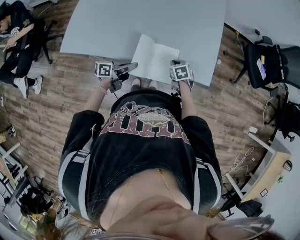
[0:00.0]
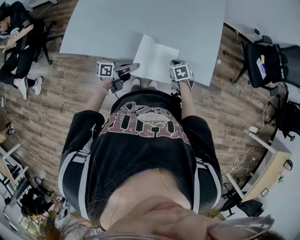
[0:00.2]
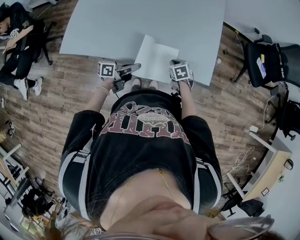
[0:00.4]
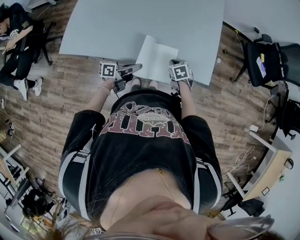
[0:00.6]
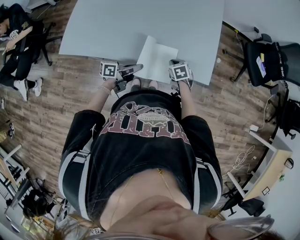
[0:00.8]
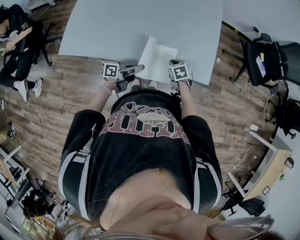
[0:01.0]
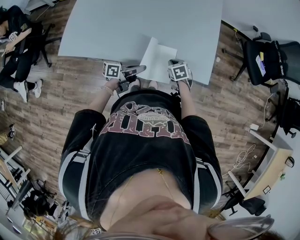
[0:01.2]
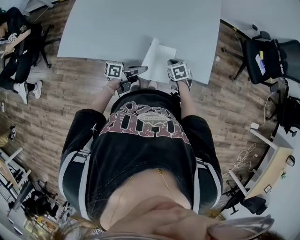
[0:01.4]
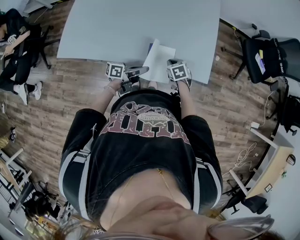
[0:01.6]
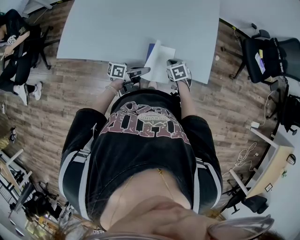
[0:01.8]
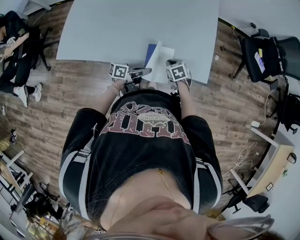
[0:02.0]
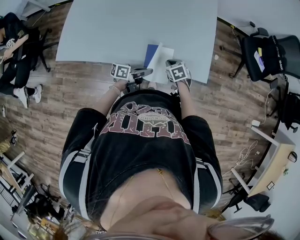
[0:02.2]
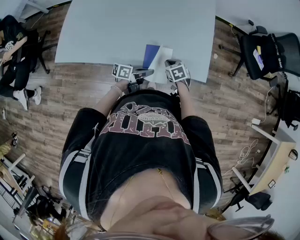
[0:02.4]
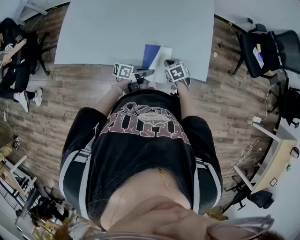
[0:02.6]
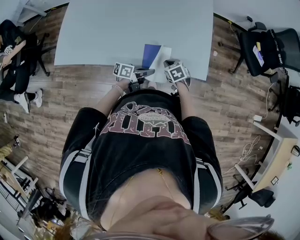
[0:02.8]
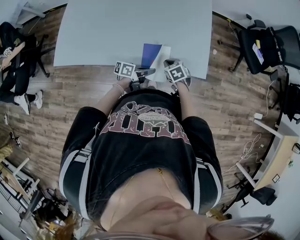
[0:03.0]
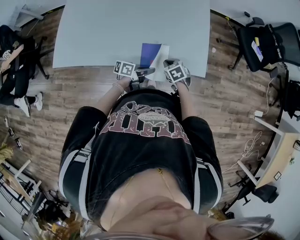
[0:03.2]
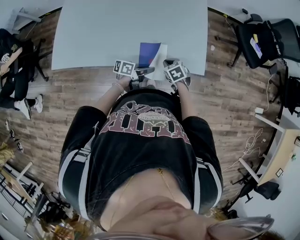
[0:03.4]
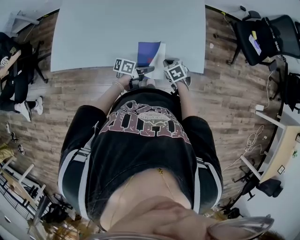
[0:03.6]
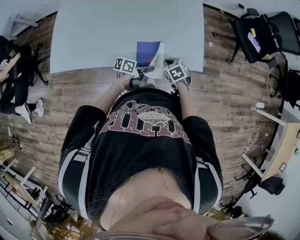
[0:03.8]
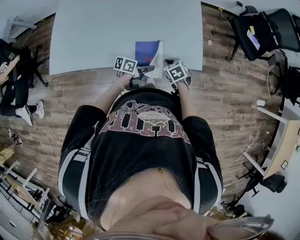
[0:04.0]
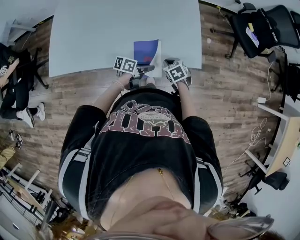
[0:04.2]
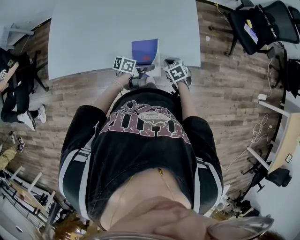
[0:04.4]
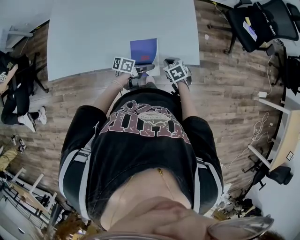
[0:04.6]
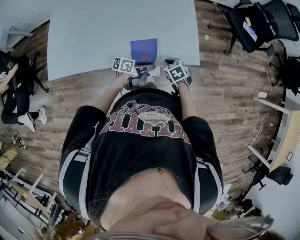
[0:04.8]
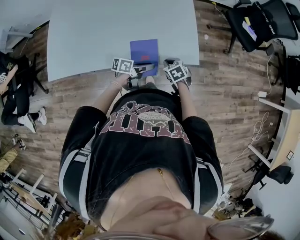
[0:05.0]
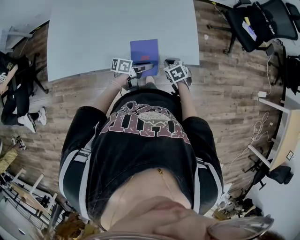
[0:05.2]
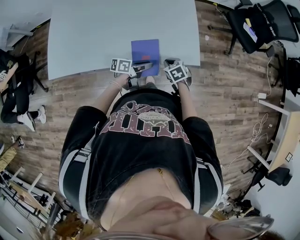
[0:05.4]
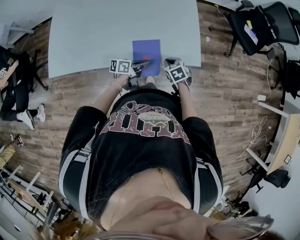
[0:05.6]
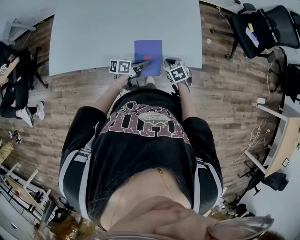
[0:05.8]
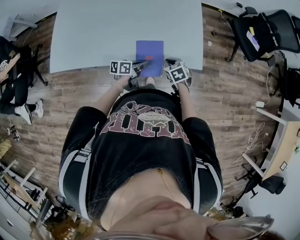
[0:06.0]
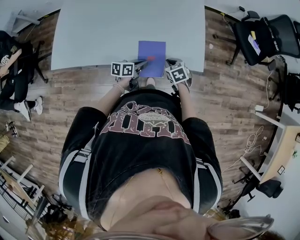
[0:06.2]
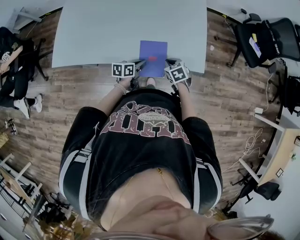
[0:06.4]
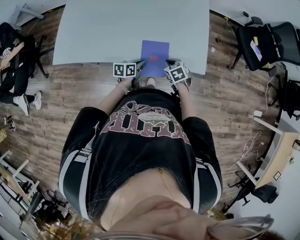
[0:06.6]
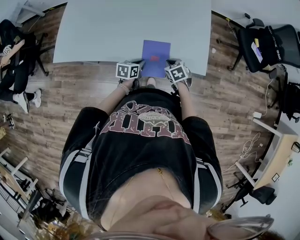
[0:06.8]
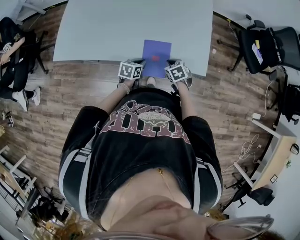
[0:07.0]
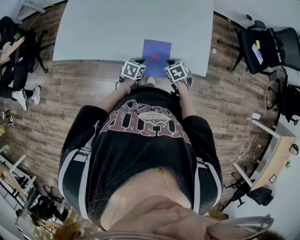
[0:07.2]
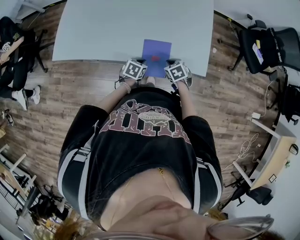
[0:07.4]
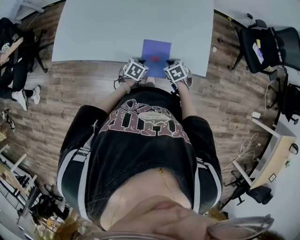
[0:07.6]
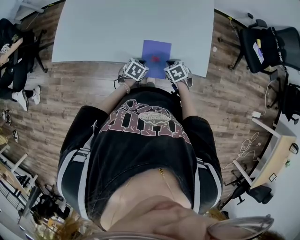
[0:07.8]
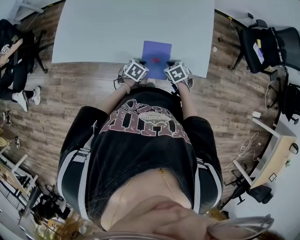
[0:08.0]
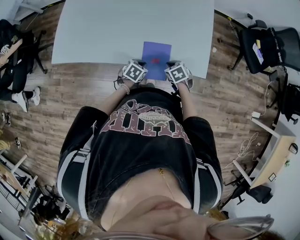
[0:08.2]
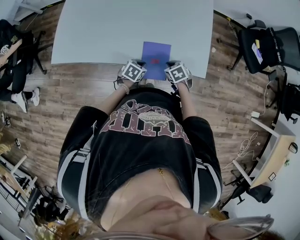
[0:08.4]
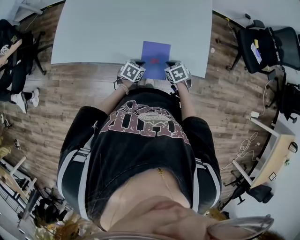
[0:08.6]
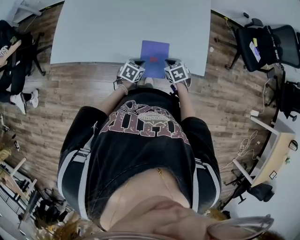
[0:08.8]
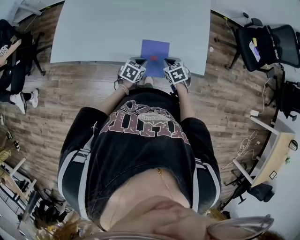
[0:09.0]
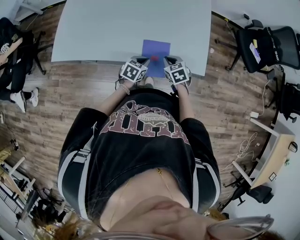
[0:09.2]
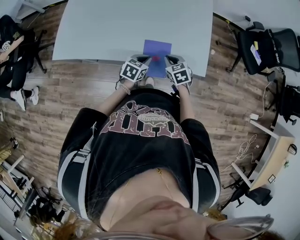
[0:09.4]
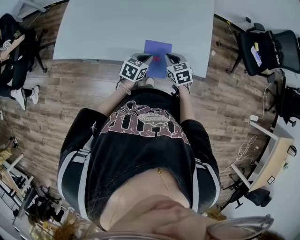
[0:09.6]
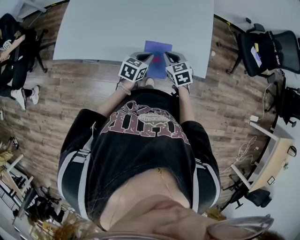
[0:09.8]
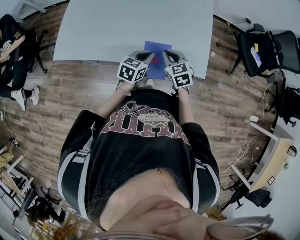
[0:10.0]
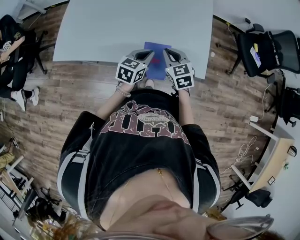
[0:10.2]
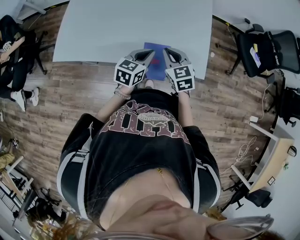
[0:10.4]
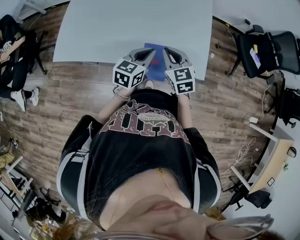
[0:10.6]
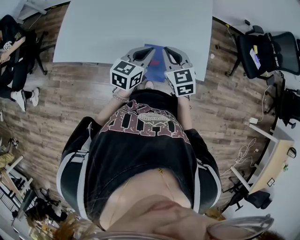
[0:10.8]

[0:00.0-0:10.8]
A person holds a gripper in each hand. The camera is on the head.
0:00.0 to 0:01.6: The left gripper shifts approximately 5 cm to the right.
0:01.6 to 0:03.0: The left gripper shifts about 5 cm to the right.
0:03.0 to 0:04.6: The left gripper opens; the right gripper travels to the right by about 5 cm.
0:04.6 to 0:06.2: The left gripper shifts approximately 5 cm to the left, changes its angle by approximately 20 degrees, and closes its fingers.
0:06.2 to 0:07.8: The left gripper tilts its fingers some 30 degrees downward.
0:07.8 to 0:09.2: The two grippers go roughly 5 cm upward.
0:09.2 to 0:10.8: Both grippers travel together upward, approximately 20 cm. The left gripper swivels some 30 degrees, while the right gripper turns by about 30 degrees.

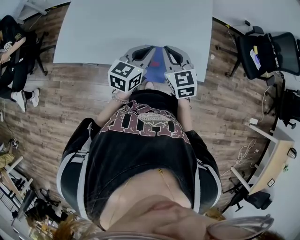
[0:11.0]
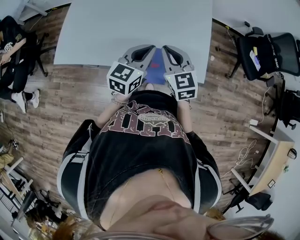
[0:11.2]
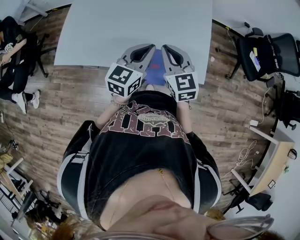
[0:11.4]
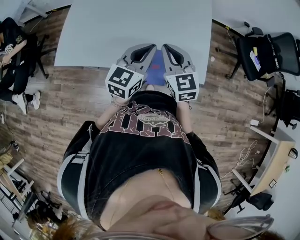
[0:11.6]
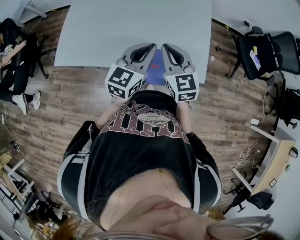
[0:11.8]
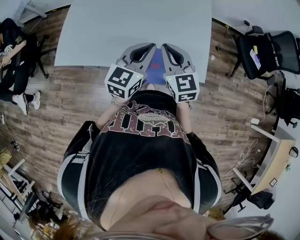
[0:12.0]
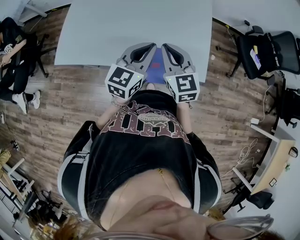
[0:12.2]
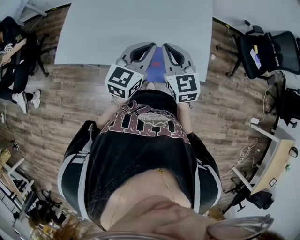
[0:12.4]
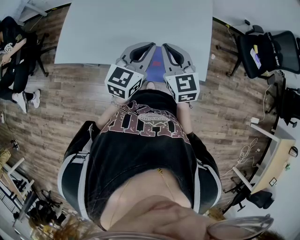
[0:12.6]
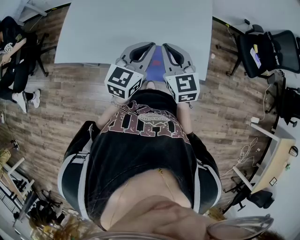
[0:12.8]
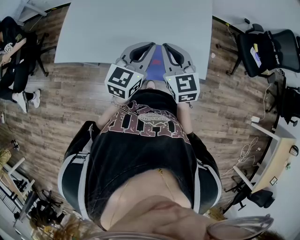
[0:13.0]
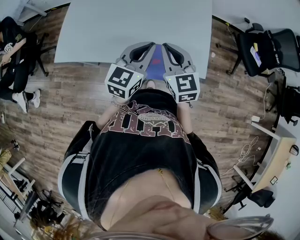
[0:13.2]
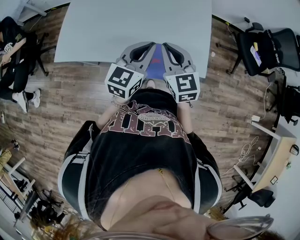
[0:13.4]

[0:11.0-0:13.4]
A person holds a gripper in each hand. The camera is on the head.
0:11.0 to 0:12.2: The left gripper is displaced upward by approximately 5 cm, while the right gripper moves some 5 cm.
0:12.2 to 0:13.4: The grippers move only a little.

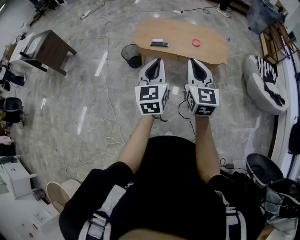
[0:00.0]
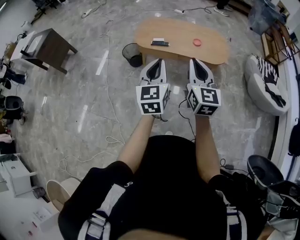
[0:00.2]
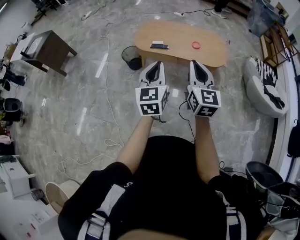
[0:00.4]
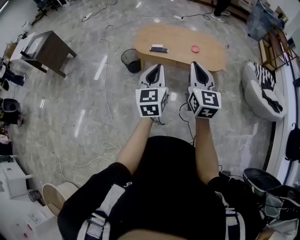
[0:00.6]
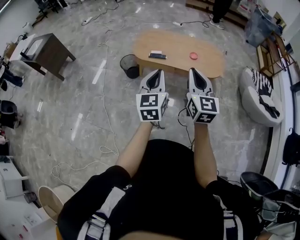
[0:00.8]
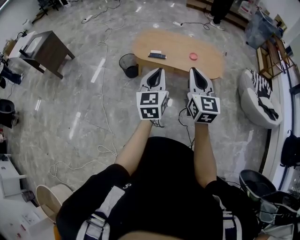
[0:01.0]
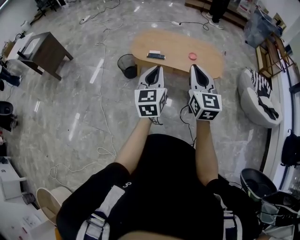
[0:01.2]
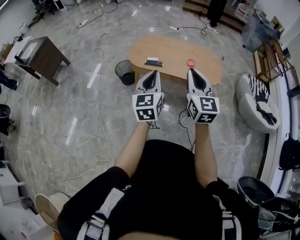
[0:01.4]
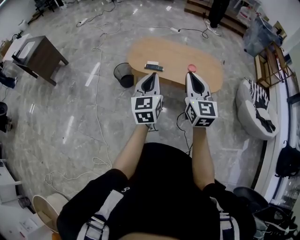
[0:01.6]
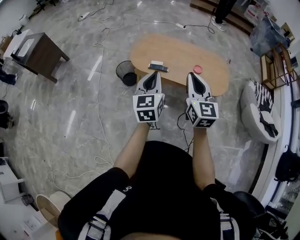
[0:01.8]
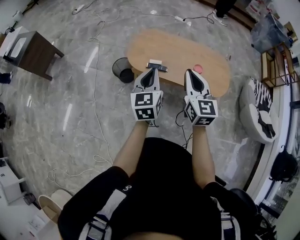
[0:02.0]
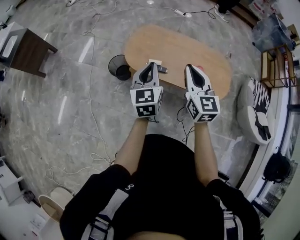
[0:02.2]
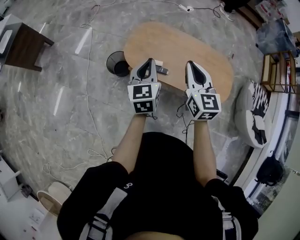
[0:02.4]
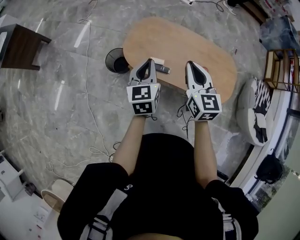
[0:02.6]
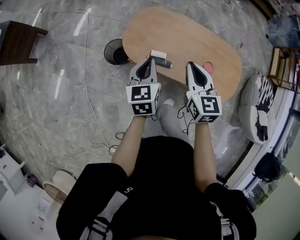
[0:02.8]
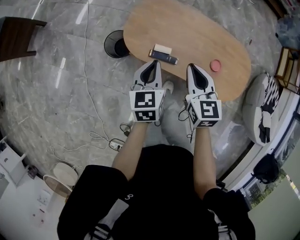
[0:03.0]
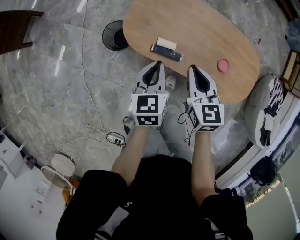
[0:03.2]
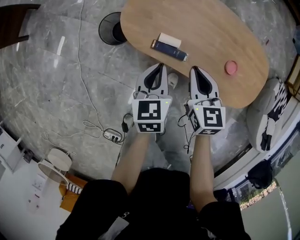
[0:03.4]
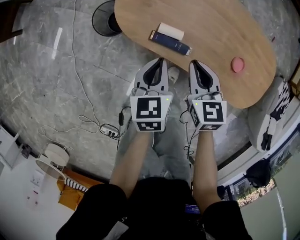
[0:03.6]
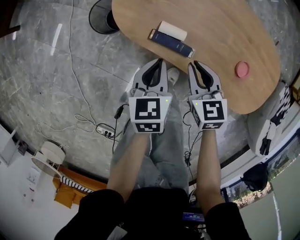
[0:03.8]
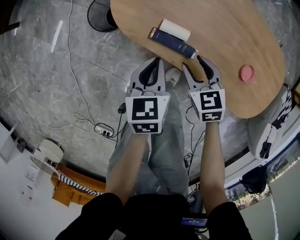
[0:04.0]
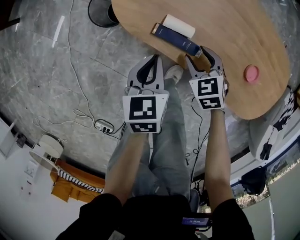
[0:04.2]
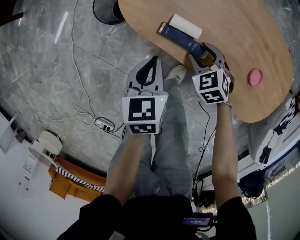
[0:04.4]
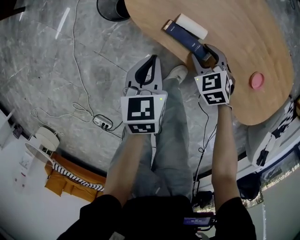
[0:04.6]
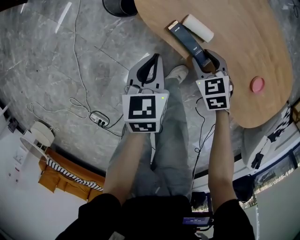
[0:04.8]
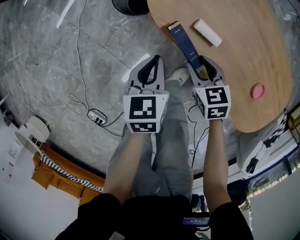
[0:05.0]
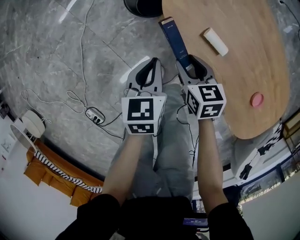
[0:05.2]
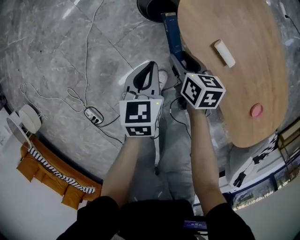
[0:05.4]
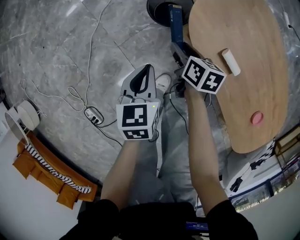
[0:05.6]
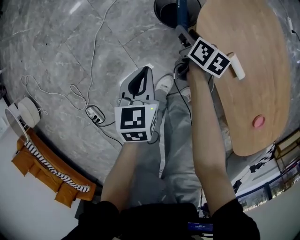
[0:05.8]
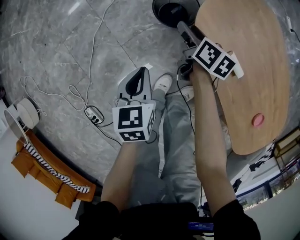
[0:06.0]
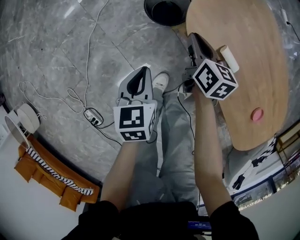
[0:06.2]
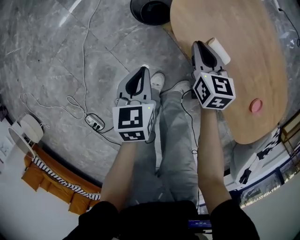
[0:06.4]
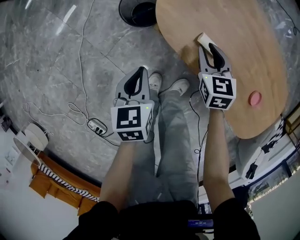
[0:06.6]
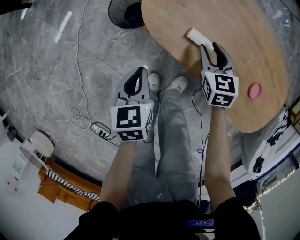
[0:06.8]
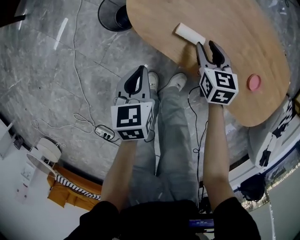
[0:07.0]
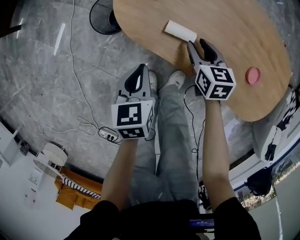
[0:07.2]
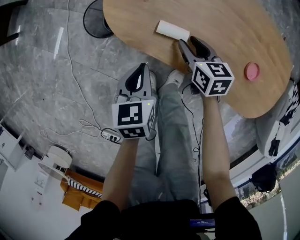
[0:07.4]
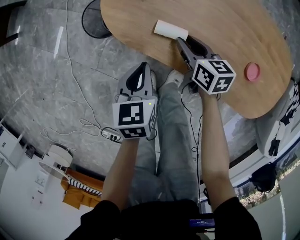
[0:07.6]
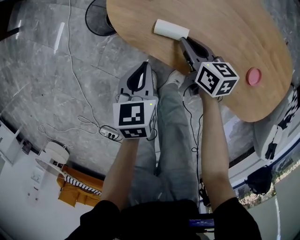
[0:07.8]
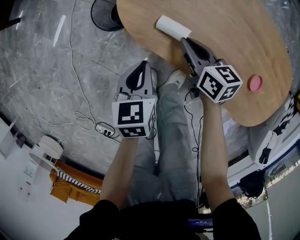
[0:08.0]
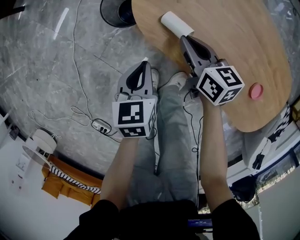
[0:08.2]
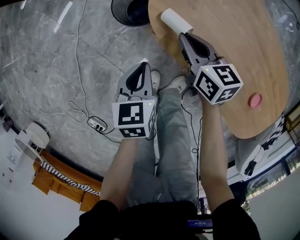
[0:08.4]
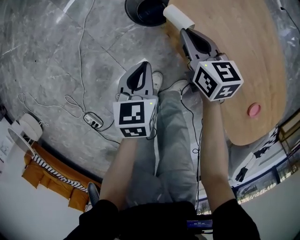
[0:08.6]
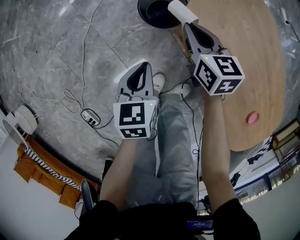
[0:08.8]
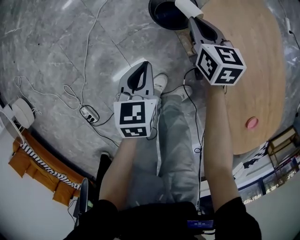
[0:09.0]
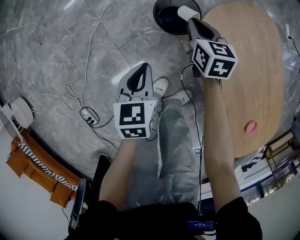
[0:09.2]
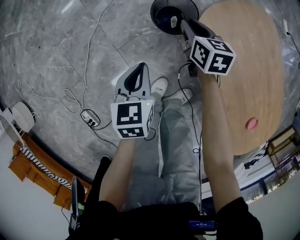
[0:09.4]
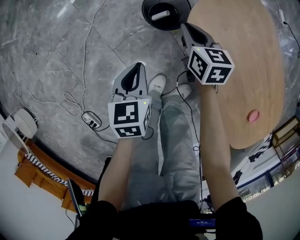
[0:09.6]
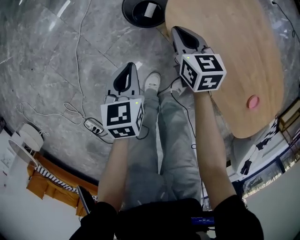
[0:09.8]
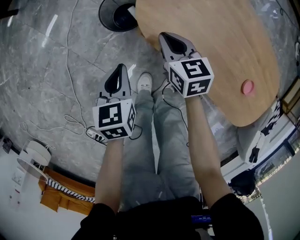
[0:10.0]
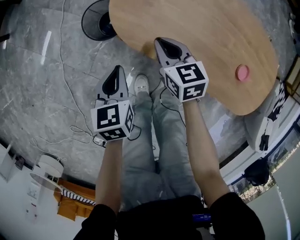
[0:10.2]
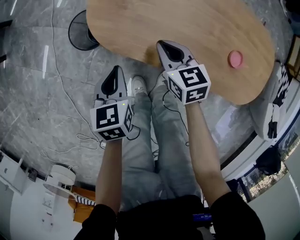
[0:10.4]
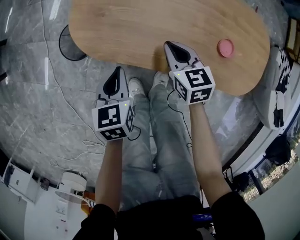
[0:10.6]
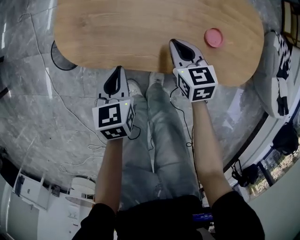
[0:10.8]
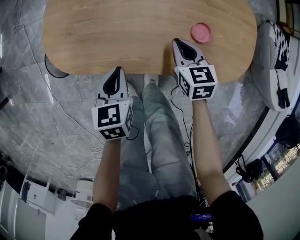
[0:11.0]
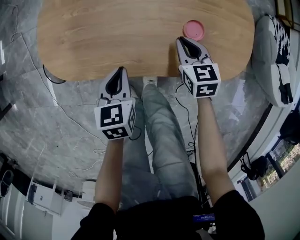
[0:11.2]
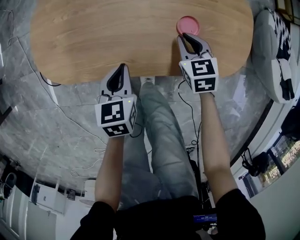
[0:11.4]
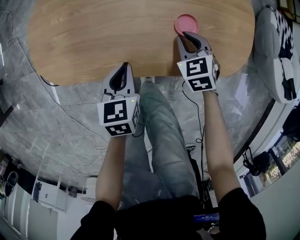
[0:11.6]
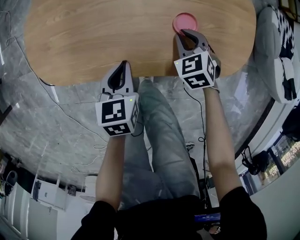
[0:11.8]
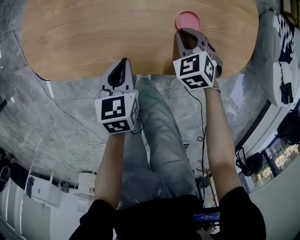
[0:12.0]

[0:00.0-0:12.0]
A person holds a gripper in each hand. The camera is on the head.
0:00.0 to 0:01.6: Both grippers move forward, approximately 15 cm.
0:01.6 to 0:03.0: Both grippers travel together forward and downward, about 40 cm. The left gripper turns by approximately 30 degrees, while the right gripper rotates some 30 degrees.
0:03.0 to 0:04.4: The two grippers go some 35 cm downward. The right gripper points its fingers roughly 30 degrees further downward, and opens.
0:04.4 to 0:06.0: The left gripper goes about 25 cm to the left, and swivels about 20 degrees; the right gripper is displaced to the left and forward by some 30 cm, and rolls clockwise, seen from behind, by some 50 degrees.
0:06.0 to 0:07.6: The left gripper ends up roughly 25 cm from where it was, and rotates roughly 30 degrees. The right gripper changes place by some 30 cm, and closes.
0:07.6 to 0:09.0: The right gripper goes approximately 30 cm to the left and forward, turns by approximately 30 degrees, and closes up, while the left gripper travels to the left by some 20 cm, and changes its angle by approximately 30 degrees.
0:09.0 to 0:10.4: The left gripper moves roughly 20 cm, and changes its angle by some 30 degrees, while the right gripper ends up some 25 cm from where it was, and turns by approximately 20 degrees.
0:10.4 to 0:12.0: The left gripper changes place by approximately 30 cm, and turns by roughly 20 degrees. Meanwhile the right gripper shifts by roughly 35 cm, and changes its angle by about 40 degrees.
